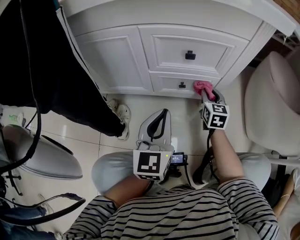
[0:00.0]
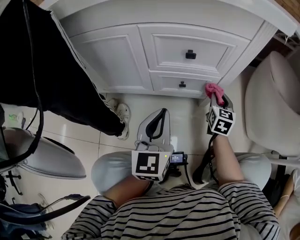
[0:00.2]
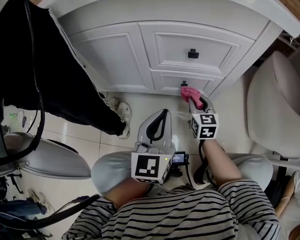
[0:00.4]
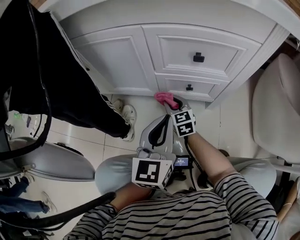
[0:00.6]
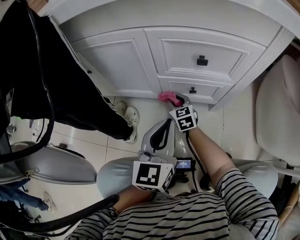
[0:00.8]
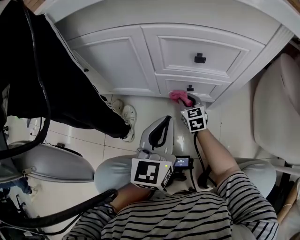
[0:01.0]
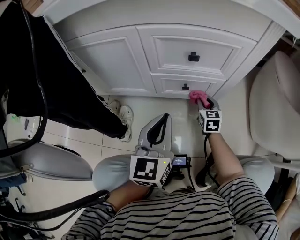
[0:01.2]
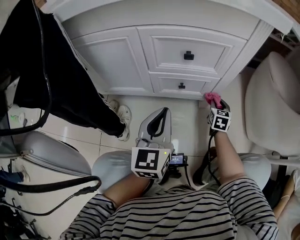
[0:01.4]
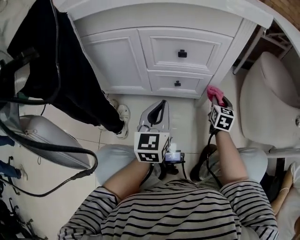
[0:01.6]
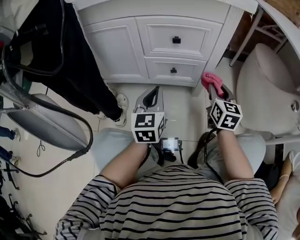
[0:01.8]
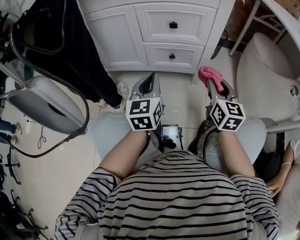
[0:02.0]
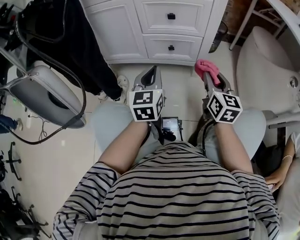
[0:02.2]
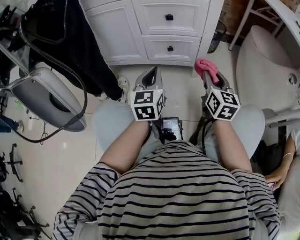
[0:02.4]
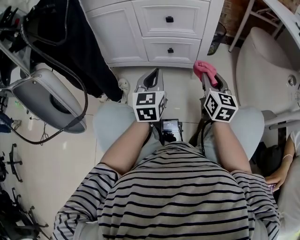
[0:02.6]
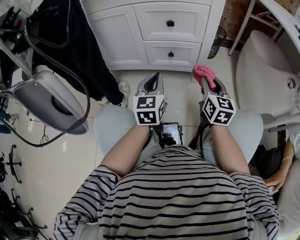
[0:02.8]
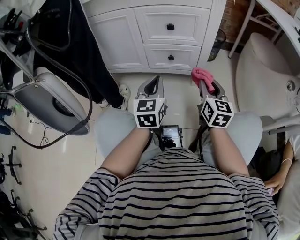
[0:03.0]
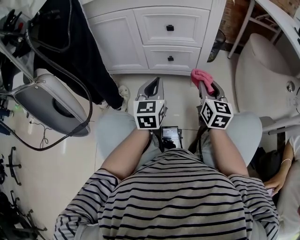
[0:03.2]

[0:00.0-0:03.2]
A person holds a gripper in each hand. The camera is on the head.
0:00.0 to 0:01.6: The right gripper goes left and right, some 30 cm each way, reversing 2 times.
0:01.6 to 0:03.2: The right gripper heads backward and upward, covering about 20 cm, and swivels about 20 degrees, while the left gripper travels backward by approximately 5 cm.

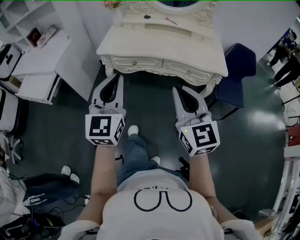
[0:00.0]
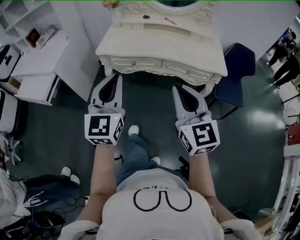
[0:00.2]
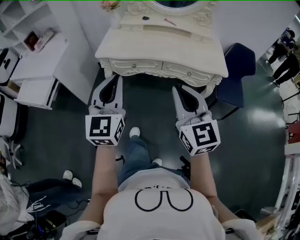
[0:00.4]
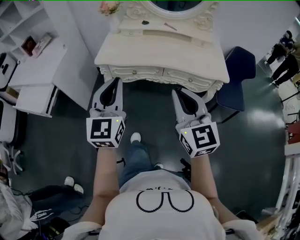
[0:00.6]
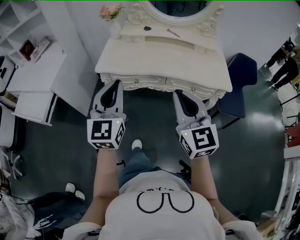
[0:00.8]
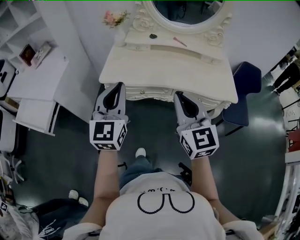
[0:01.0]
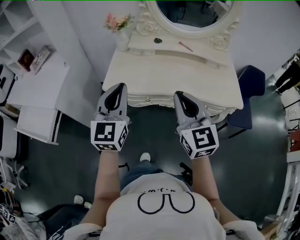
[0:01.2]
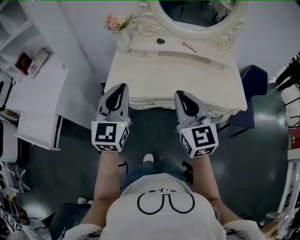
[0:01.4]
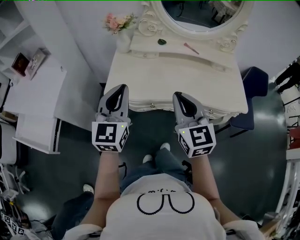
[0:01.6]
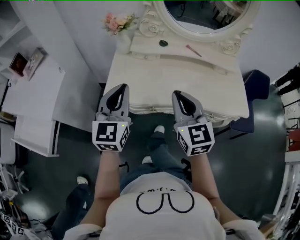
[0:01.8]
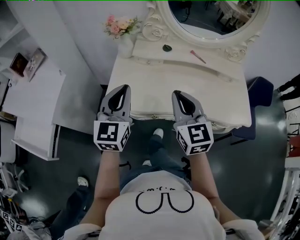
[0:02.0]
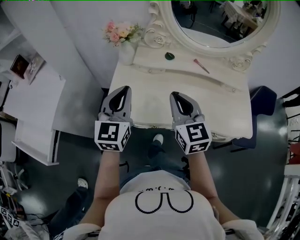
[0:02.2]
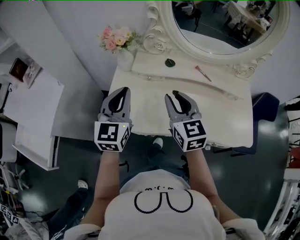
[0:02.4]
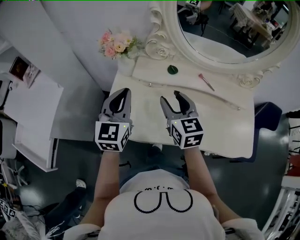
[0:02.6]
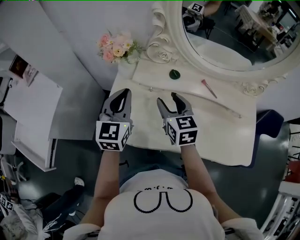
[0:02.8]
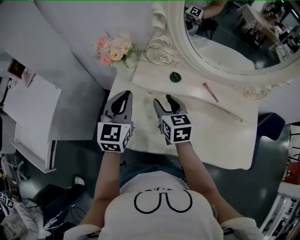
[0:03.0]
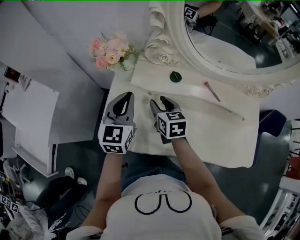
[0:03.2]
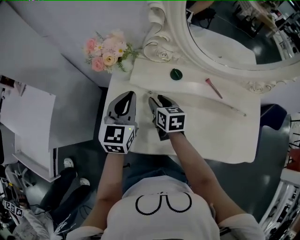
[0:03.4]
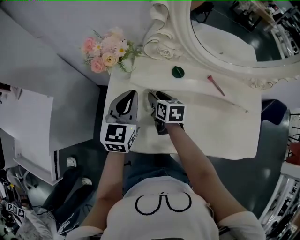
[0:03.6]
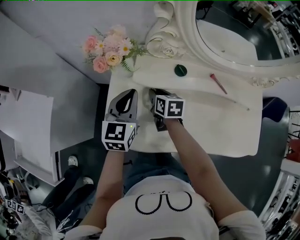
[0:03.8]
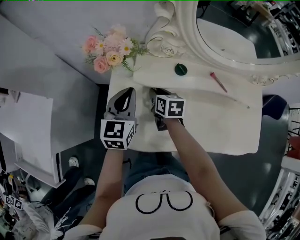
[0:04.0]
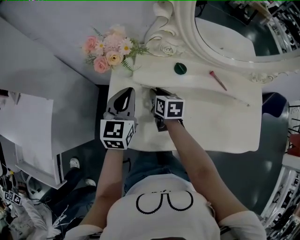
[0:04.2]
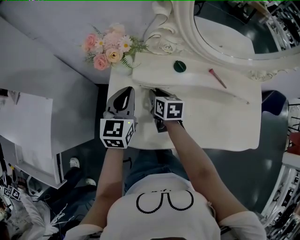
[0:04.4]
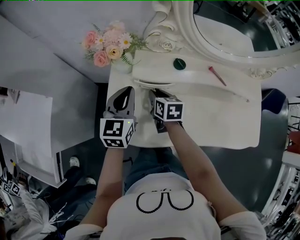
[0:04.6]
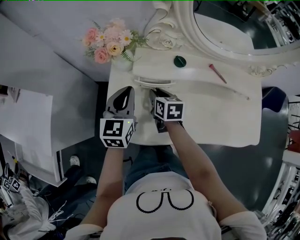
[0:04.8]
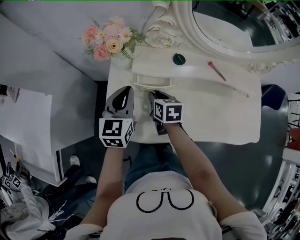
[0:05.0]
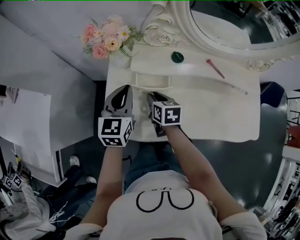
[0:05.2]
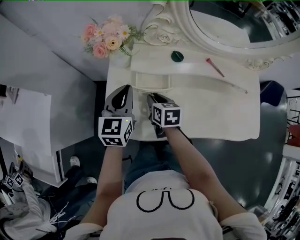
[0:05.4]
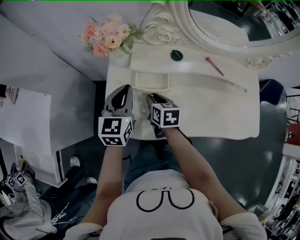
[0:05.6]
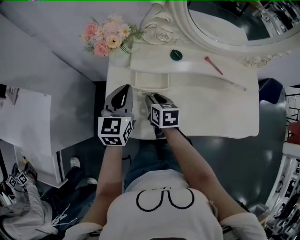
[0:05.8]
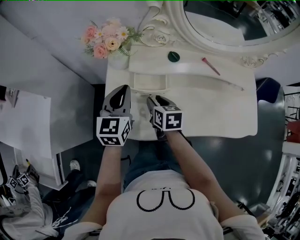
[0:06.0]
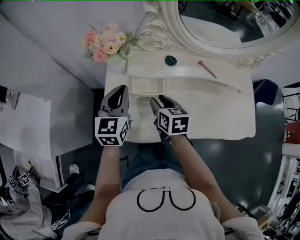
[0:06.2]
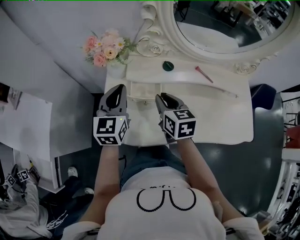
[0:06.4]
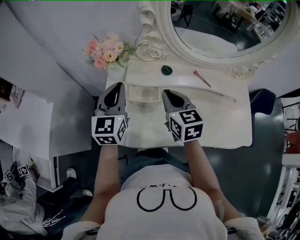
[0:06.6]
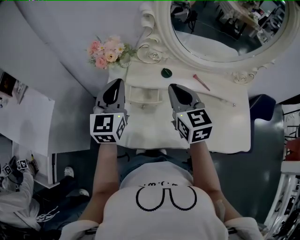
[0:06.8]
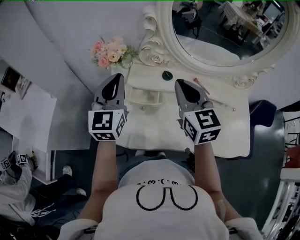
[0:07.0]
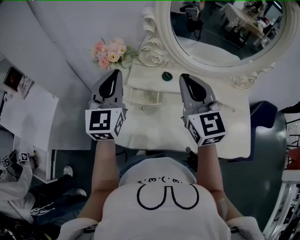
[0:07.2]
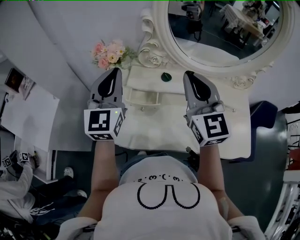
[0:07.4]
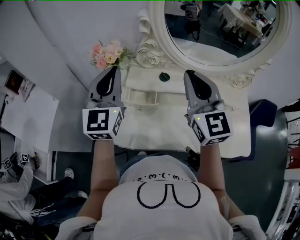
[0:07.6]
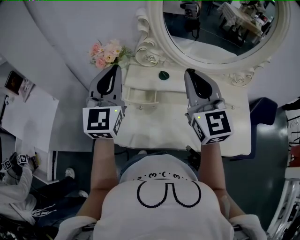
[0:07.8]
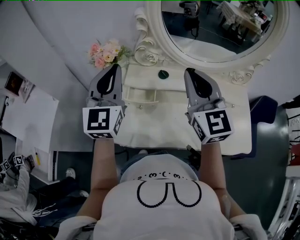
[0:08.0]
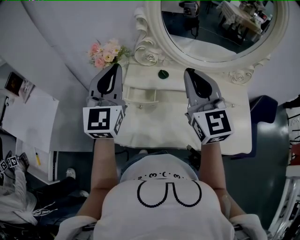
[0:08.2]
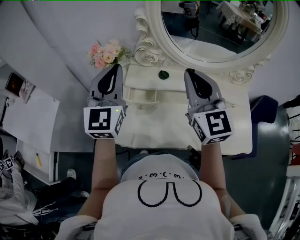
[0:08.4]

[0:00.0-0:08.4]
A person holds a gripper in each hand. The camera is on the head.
0:00.0 to 0:01.4: The two grippers go about 30 cm forward.
0:01.4 to 0:02.8: The grippers both shift forward by roughly 35 cm. The right gripper rotates about 20 degrees, and opens up.
0:02.8 to 0:04.2: The left gripper shifts approximately 10 cm downward and forward, while the right gripper moves downward and forward, some 20 cm, changes its angle by some 30 degrees, and closes.
0:04.2 to 0:05.6: The right gripper heads backward, covering approximately 10 cm.
0:05.6 to 0:07.0: The right gripper goes some 30 cm upward, tips its fingers upward by approximately 30 degrees, and closes up; the left gripper travels upward by approximately 15 cm, and changes its angle by roughly 20 degrees.
0:07.0 to 0:08.4: Both grippers move upward, about 5 cm.

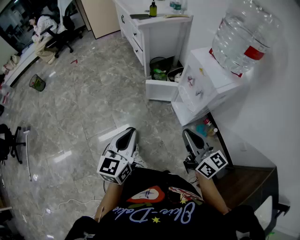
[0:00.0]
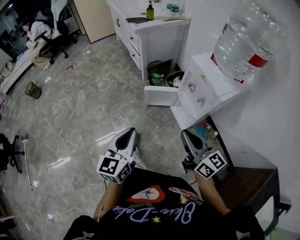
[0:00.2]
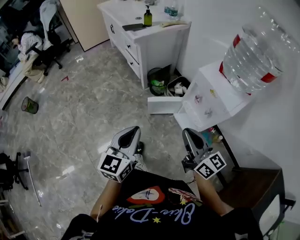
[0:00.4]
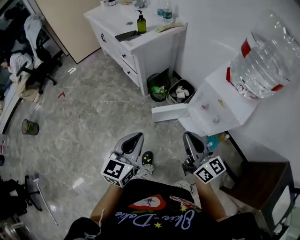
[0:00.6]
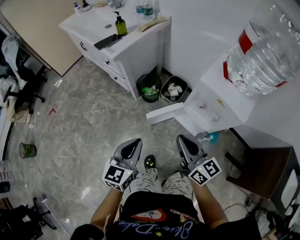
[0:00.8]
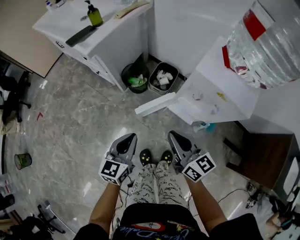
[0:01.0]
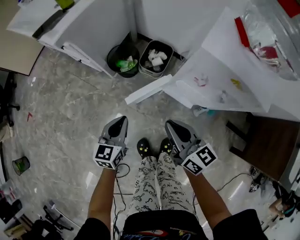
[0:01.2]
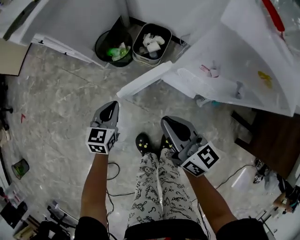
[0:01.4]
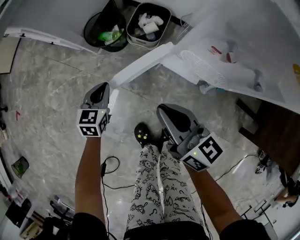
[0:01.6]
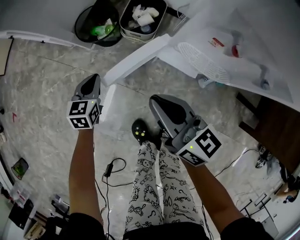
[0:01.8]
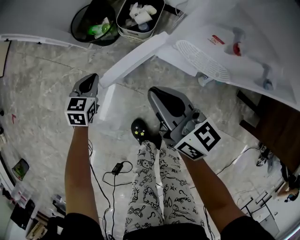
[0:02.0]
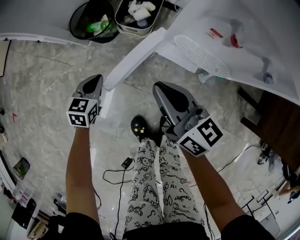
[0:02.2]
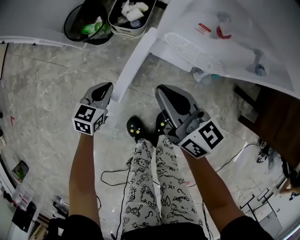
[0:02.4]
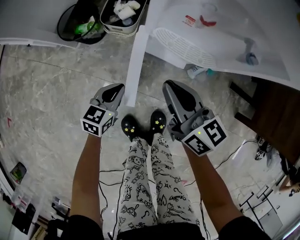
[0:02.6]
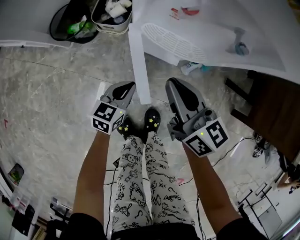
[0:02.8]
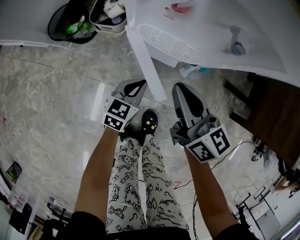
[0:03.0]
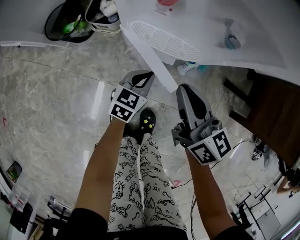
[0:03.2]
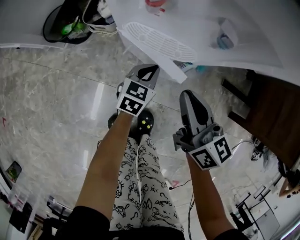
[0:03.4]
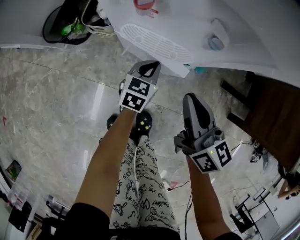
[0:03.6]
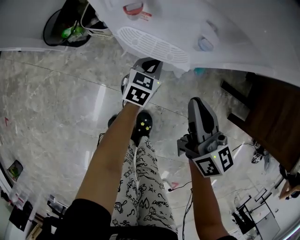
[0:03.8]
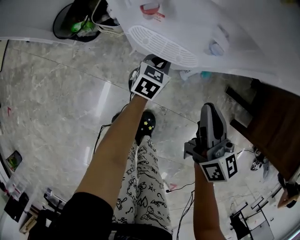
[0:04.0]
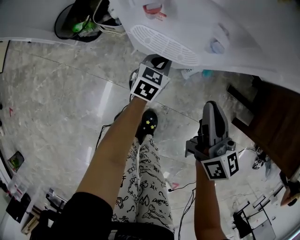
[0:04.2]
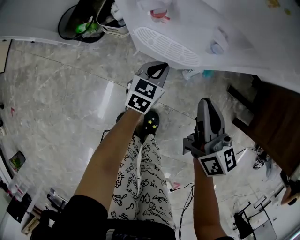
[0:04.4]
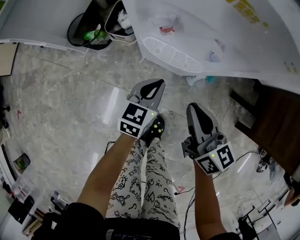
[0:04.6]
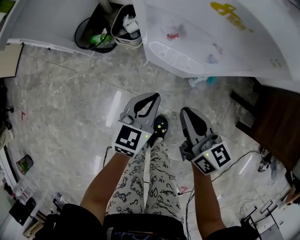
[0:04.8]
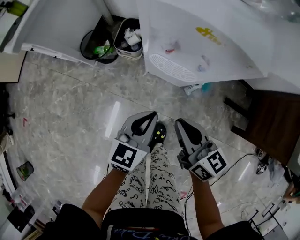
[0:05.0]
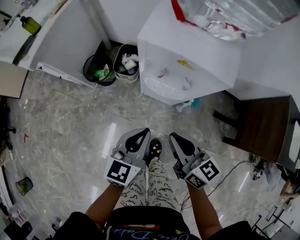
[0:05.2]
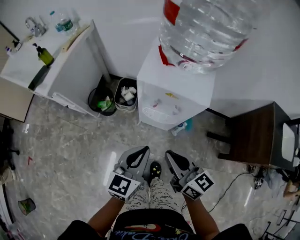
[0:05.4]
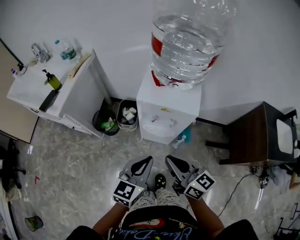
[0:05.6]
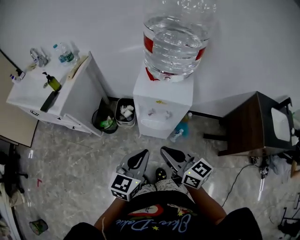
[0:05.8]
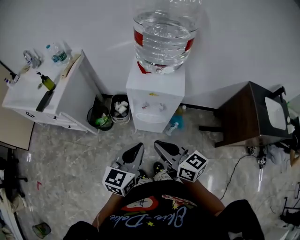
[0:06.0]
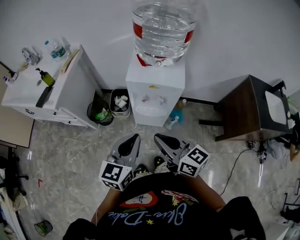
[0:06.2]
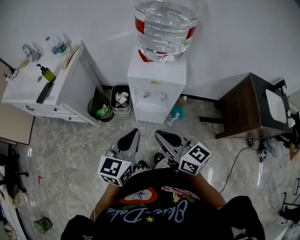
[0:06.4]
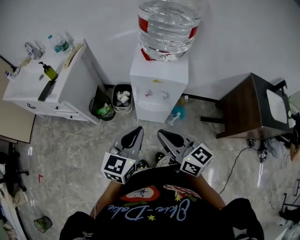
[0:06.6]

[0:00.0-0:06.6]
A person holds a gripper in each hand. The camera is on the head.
0:00.0 to 0:01.6: The left gripper shifts by some 70 cm, and rotates approximately 50 degrees, while the right gripper ends up some 50 cm from where it was, and swivels some 30 degrees.
0:01.6 to 0:03.2: The left gripper moves roughly 35 cm, and rotates about 30 degrees, while the right gripper ends up approximately 20 cm from where it was, and swivels roughly 20 degrees.
0:03.2 to 0:05.0: The left gripper travels upward by about 25 cm. Meanwhile the right gripper heads upward and backward, covering about 15 cm.
0:05.0 to 0:06.6: The two grippers go about 30 cm upward.

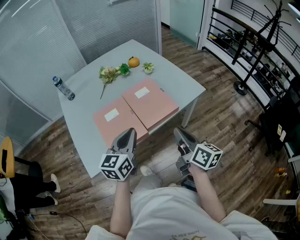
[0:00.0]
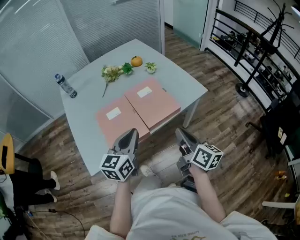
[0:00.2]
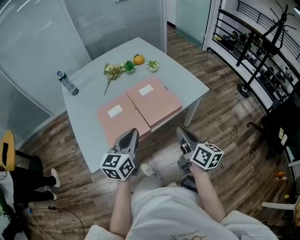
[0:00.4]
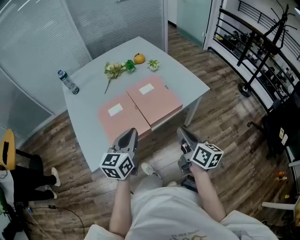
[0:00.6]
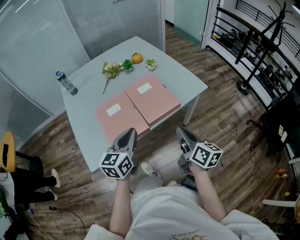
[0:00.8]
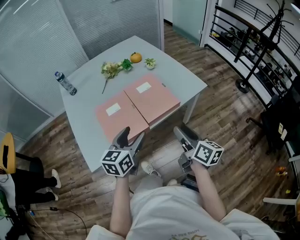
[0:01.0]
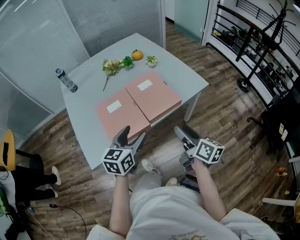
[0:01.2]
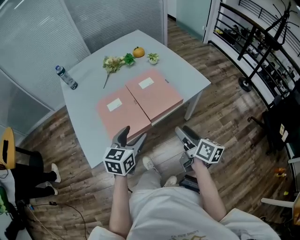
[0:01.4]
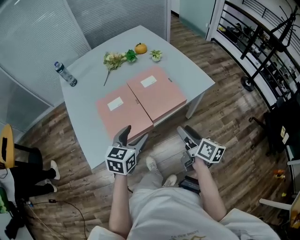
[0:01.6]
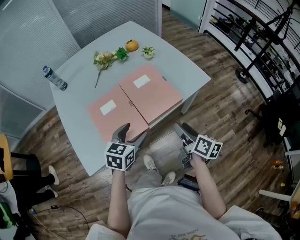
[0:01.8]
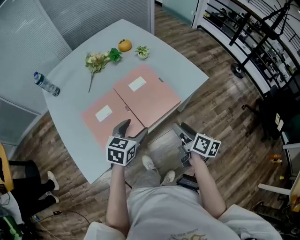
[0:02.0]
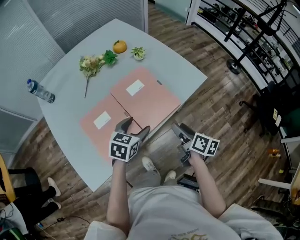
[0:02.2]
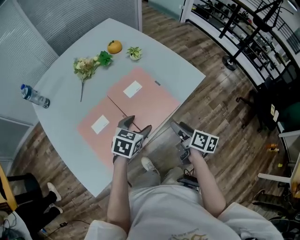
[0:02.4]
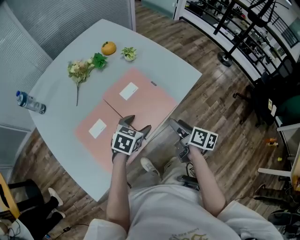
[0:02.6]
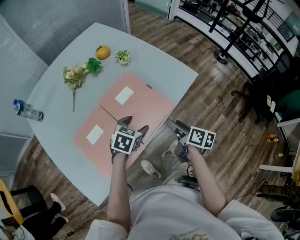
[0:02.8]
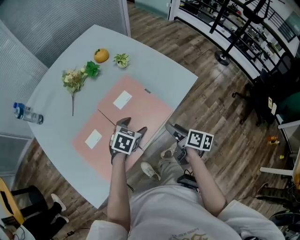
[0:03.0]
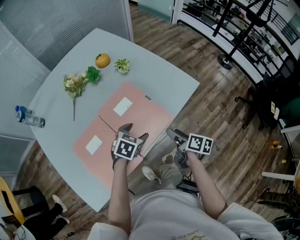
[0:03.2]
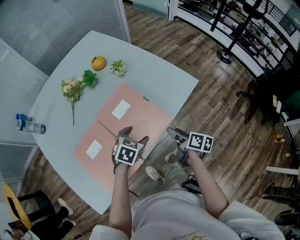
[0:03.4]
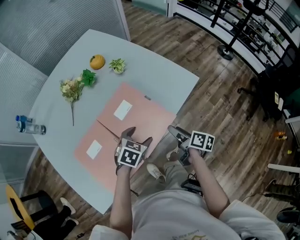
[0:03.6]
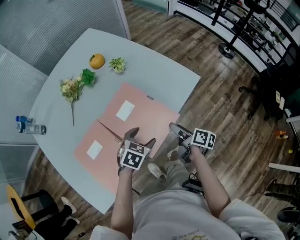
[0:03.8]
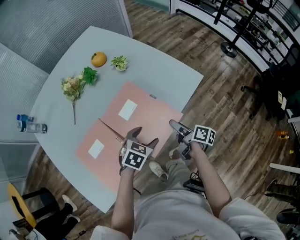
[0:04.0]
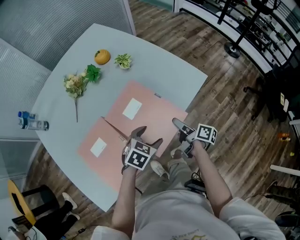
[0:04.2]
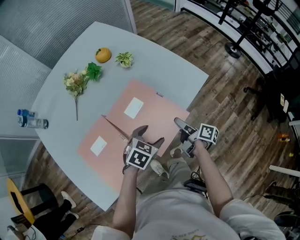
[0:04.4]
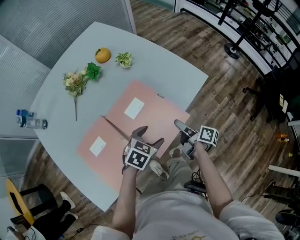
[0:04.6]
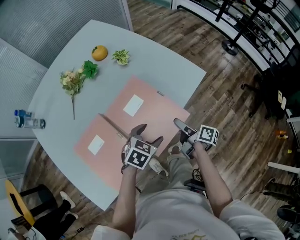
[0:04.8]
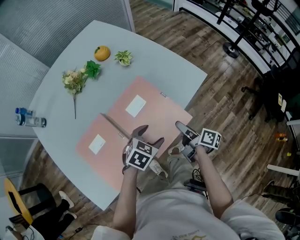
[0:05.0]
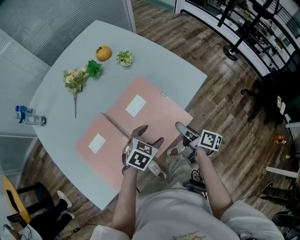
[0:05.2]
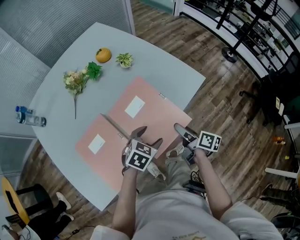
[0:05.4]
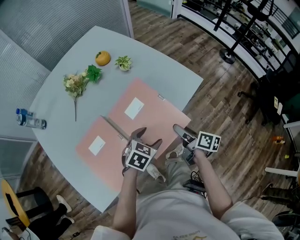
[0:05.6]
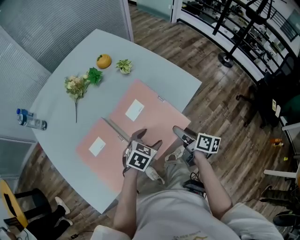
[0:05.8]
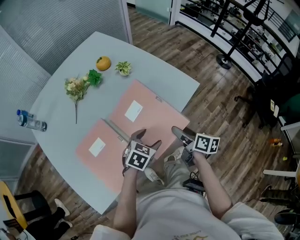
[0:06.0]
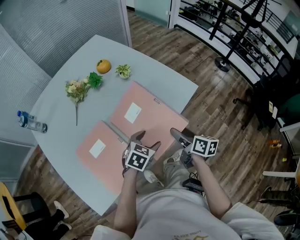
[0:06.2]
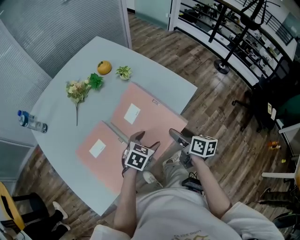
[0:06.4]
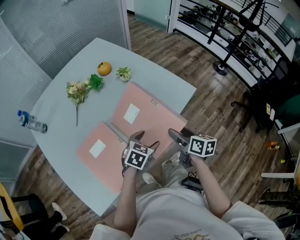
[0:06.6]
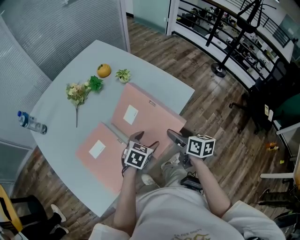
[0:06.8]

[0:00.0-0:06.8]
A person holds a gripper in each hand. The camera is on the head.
0:00.0 to 0:01.4: The grippers both shift downward by approximately 5 cm. The right gripper opens its fingers, while the left gripper opens up.
0:01.4 to 0:02.8: The two grippers go approximately 25 cm forward and downward. The left gripper turns by about 40 degrees, while the right gripper swivels about 20 degrees.
0:02.8 to 0:04.0: The right gripper is displaced downward and forward by some 10 cm. Meanwhile the left gripper ends up about 5 cm from where it was.
0:04.0 to 0:05.4: The grippers move only a little.
0:05.4 to 0:06.8: The right gripper goes some 10 cm upward, and turns by some 30 degrees.
